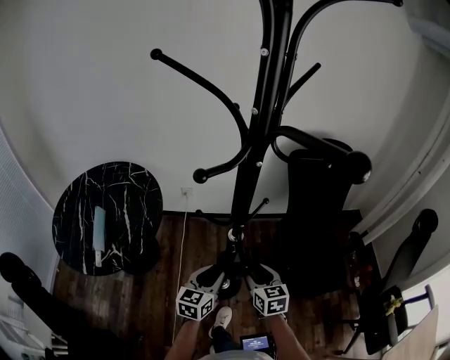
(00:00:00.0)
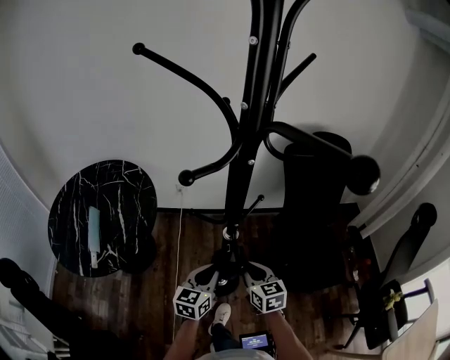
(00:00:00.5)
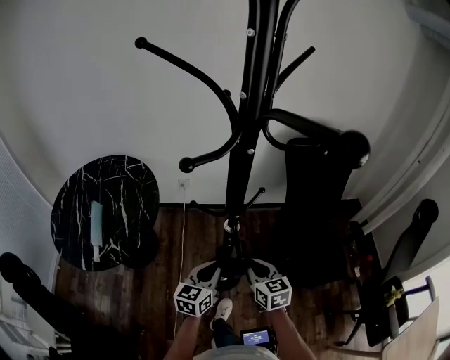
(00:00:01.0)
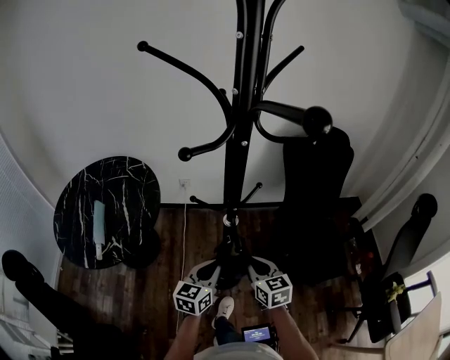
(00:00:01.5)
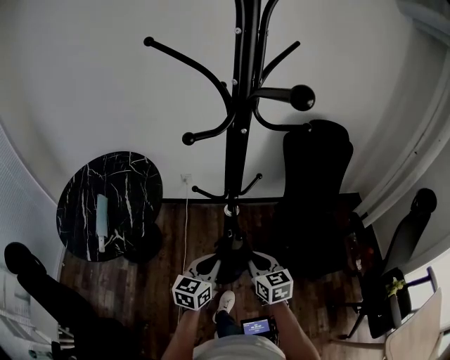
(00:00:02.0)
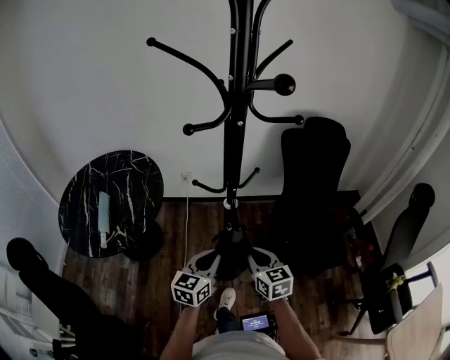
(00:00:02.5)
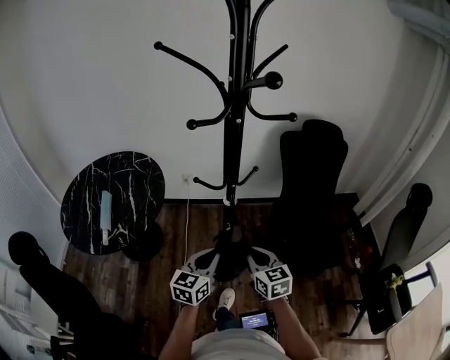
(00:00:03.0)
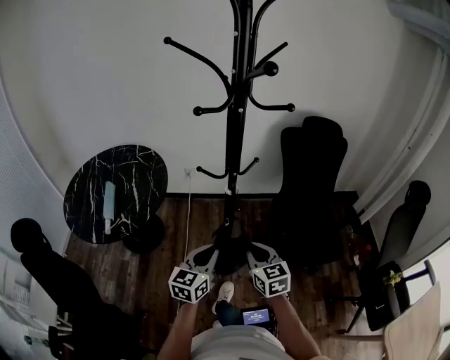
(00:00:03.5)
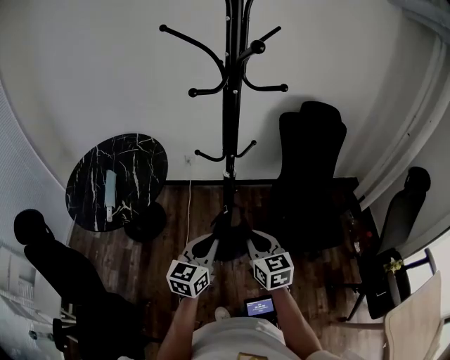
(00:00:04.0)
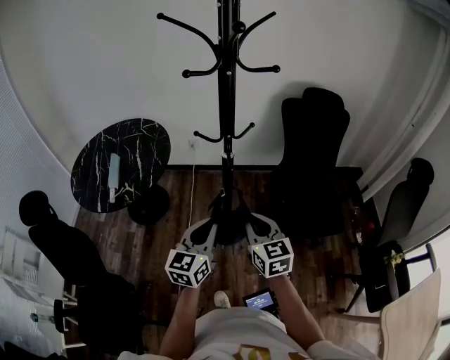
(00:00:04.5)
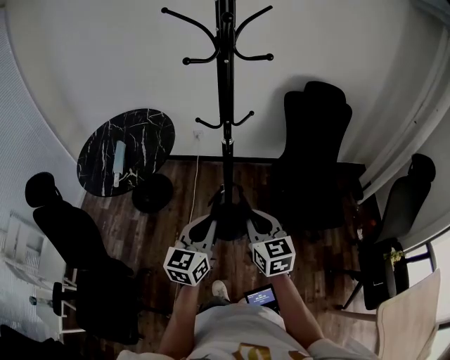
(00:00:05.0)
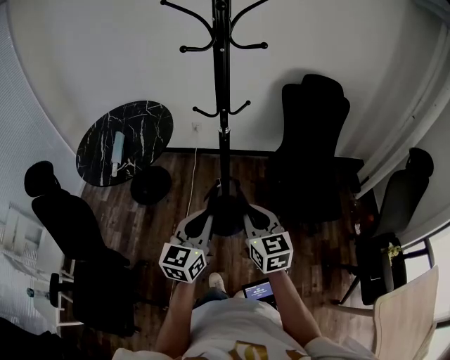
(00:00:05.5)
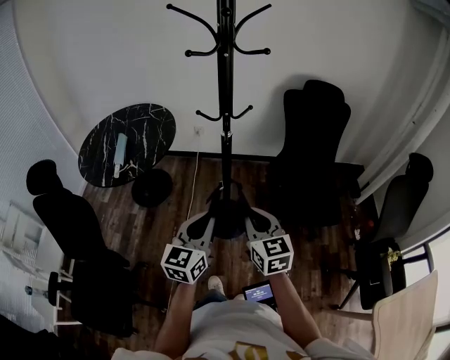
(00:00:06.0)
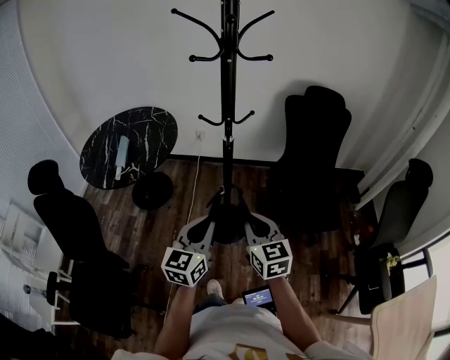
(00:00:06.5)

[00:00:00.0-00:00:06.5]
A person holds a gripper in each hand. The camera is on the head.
00:00:00.0 to 00:00:02.0: The left gripper shifts by roughly 5 cm, and closes. The right gripper changes place by some 5 cm, and closes its fingers.
00:00:02.0 to 00:00:04.5: The two grippers go some 15 cm backward and upward.
00:00:04.5 to 00:00:06.5: Both grippers travel together backward, about 10 cm.

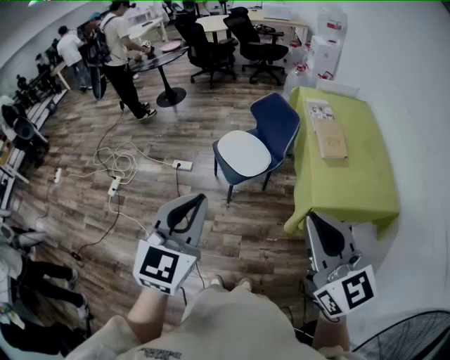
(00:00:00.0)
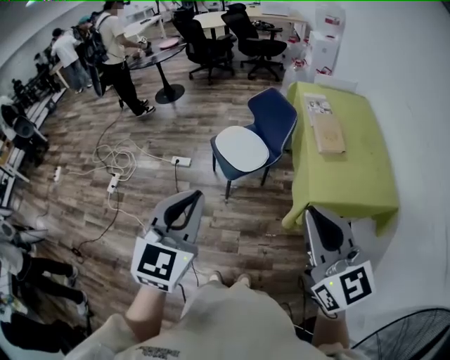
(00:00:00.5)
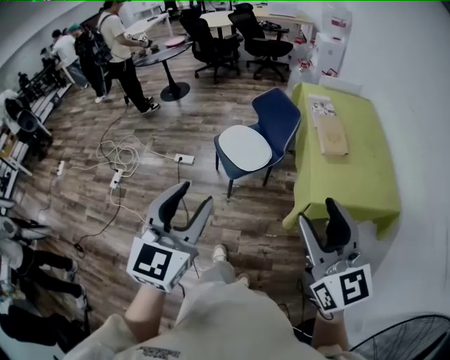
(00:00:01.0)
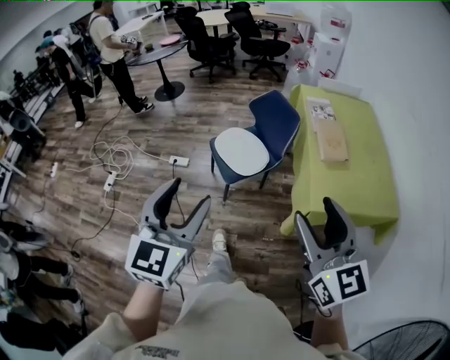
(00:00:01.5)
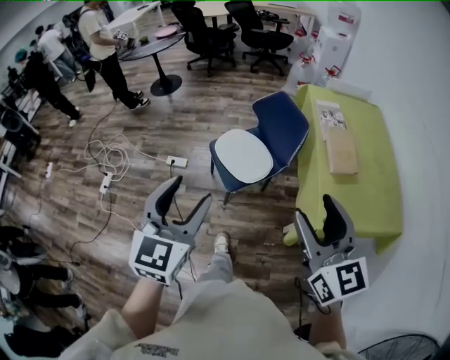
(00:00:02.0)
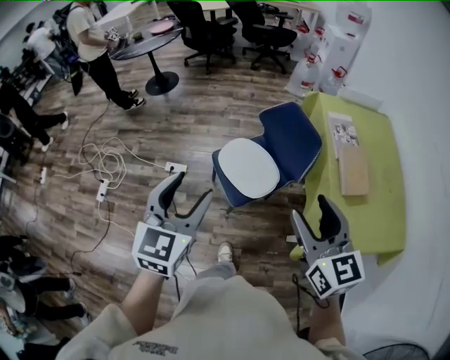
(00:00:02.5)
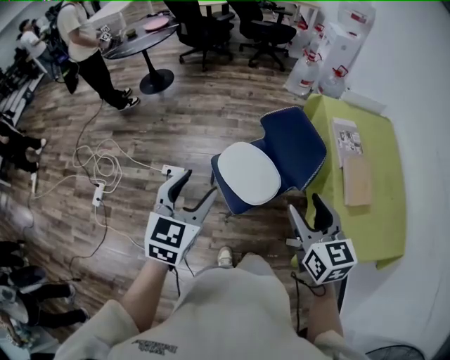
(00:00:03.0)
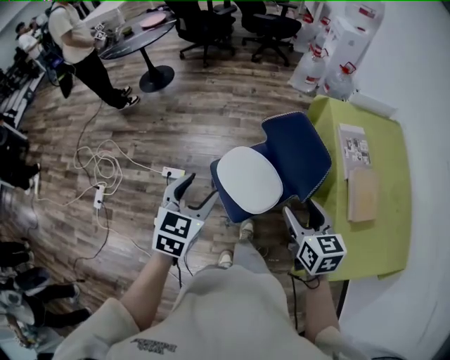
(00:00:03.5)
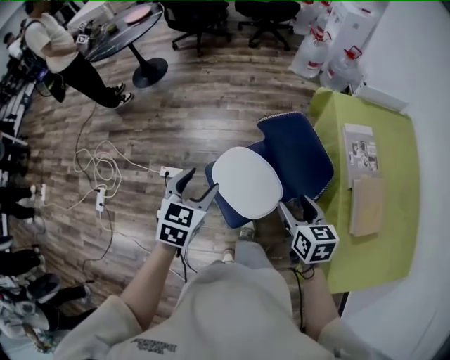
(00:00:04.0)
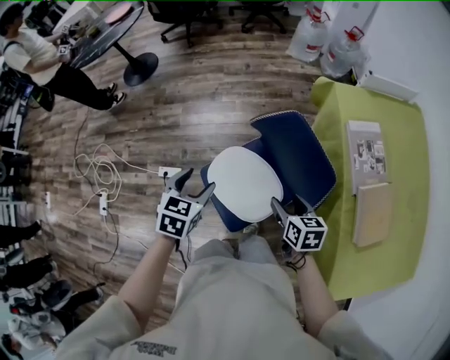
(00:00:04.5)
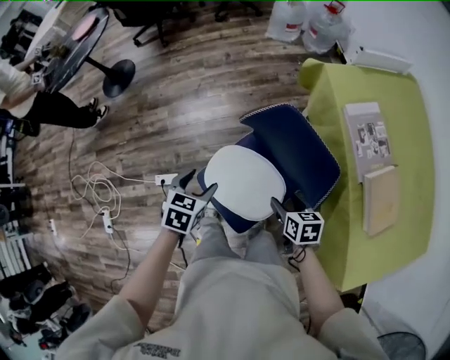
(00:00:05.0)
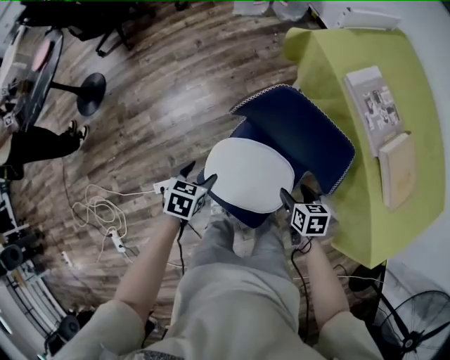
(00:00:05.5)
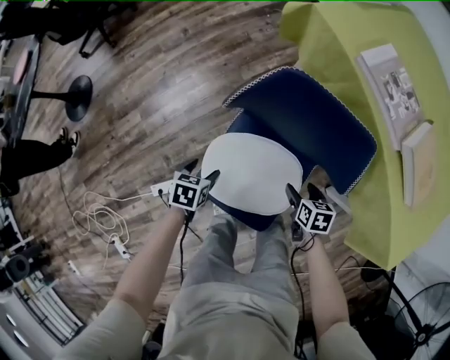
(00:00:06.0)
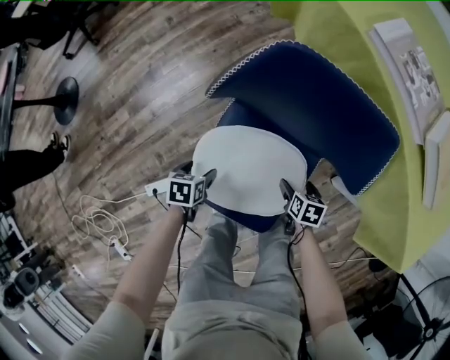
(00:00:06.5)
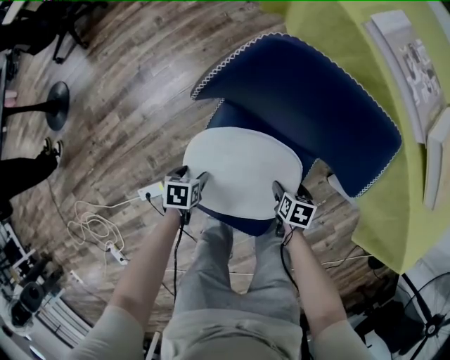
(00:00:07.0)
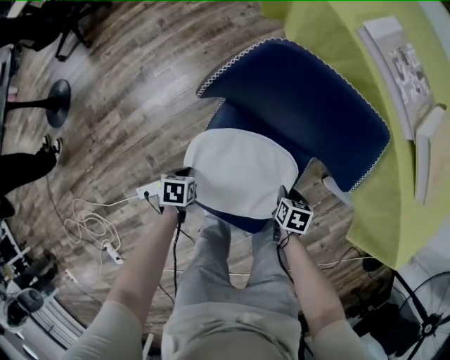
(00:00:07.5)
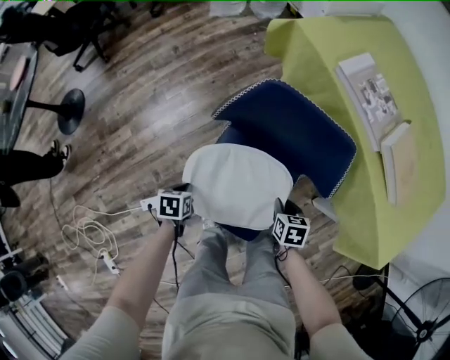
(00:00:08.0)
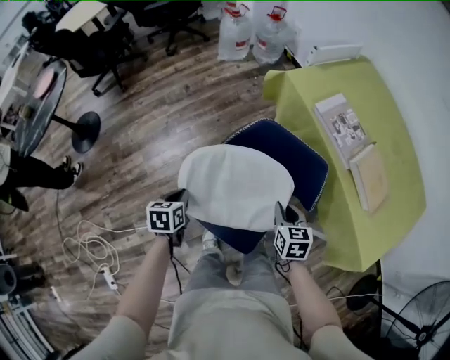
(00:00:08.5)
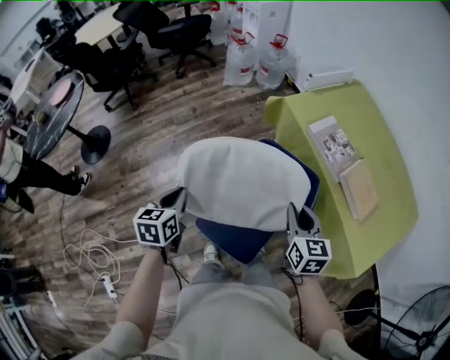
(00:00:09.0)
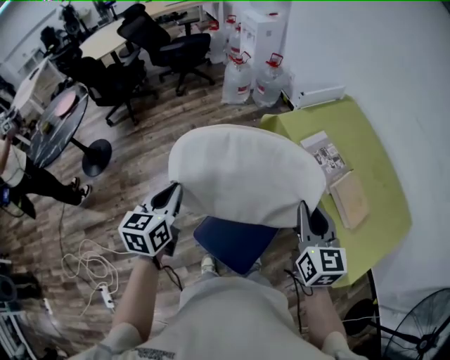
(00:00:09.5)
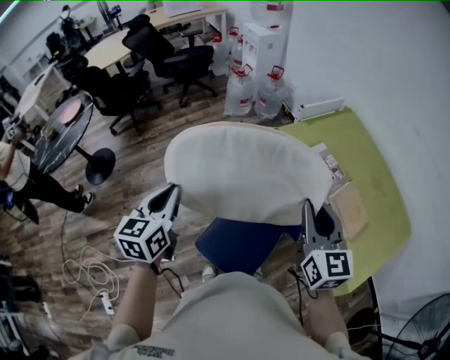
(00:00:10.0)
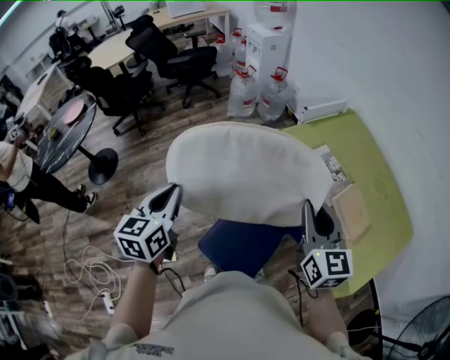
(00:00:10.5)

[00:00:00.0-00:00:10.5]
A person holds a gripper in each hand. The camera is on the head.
00:00:00.0 to 00:00:02.0: Both grippers move forward, some 20 cm. The left gripper opens its fingers. The right gripper opens its fingers.
00:00:02.0 to 00:00:04.0: The two grippers travel together, forward, about 40 cm. The grippers both shift downward by approximately 25 cm. The left gripper rotates roughly 30 degrees; the right gripper angles its fingers downward, by some 30 degrees.
00:00:04.0 to 00:00:06.5: Both grippers move downward, approximately 50 cm. The left gripper turns by about 50 degrees. The right gripper points its fingers roughly 30 degrees further downward.
00:00:06.5 to 00:00:08.5: Both grippers travel together upward, approximately 30 cm. The left gripper rotates roughly 20 degrees, and closes up. Meanwhile the right gripper rotates about 30 degrees, and closes.
00:00:08.5 to 00:00:10.5: Both grippers move upward, approximately 35 cm. The right gripper tilts its fingers some 30 degrees upward, while the left gripper tilts its fingers roughly 30 degrees upward.

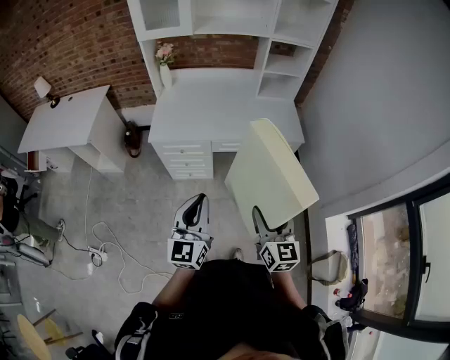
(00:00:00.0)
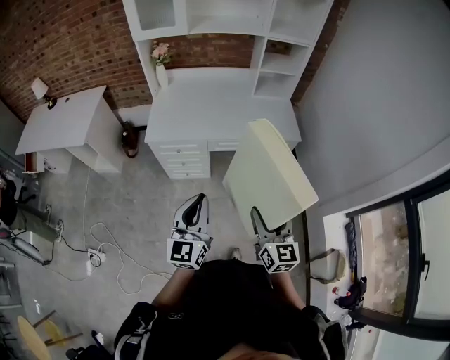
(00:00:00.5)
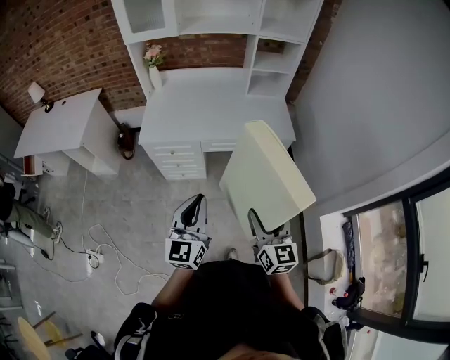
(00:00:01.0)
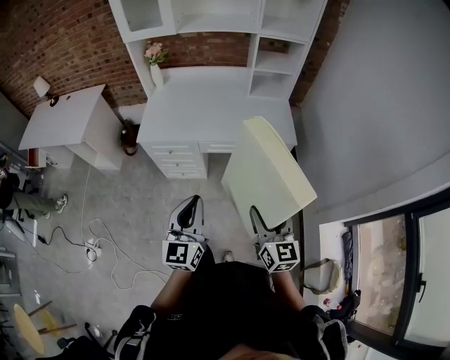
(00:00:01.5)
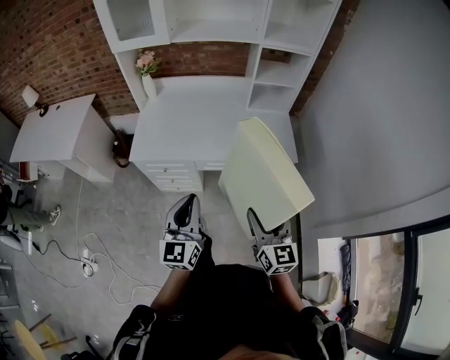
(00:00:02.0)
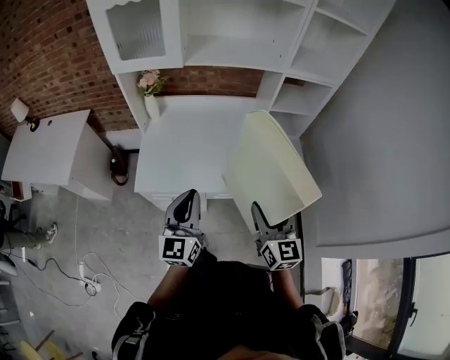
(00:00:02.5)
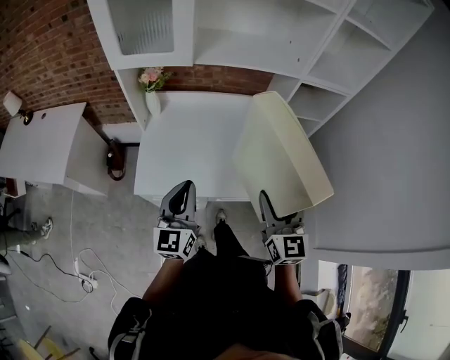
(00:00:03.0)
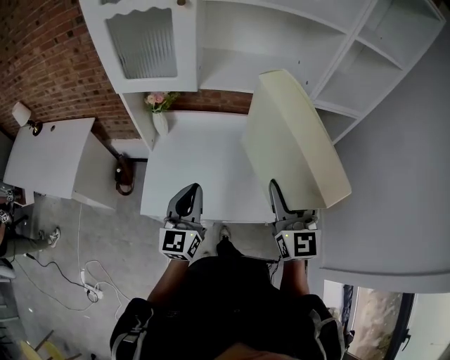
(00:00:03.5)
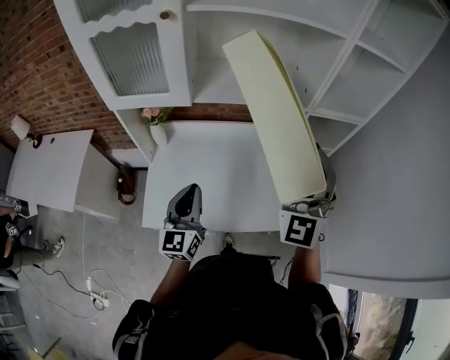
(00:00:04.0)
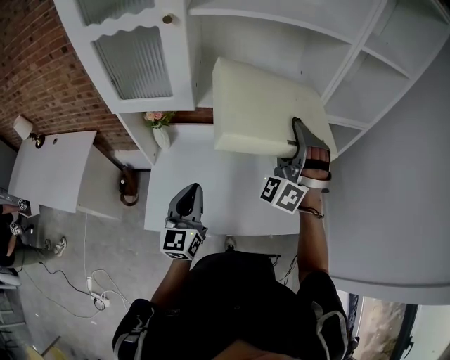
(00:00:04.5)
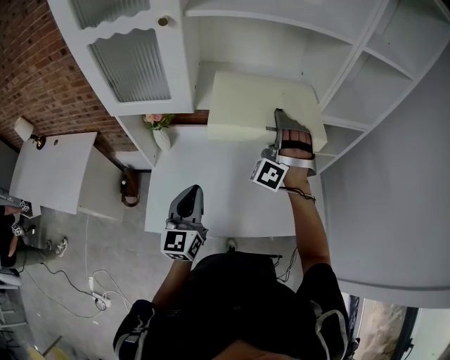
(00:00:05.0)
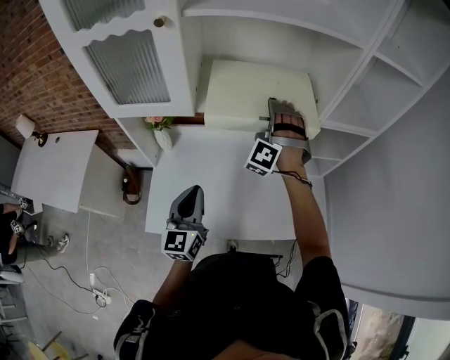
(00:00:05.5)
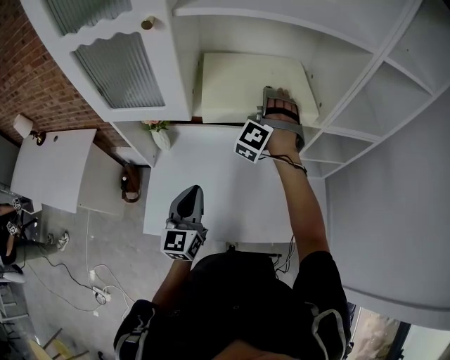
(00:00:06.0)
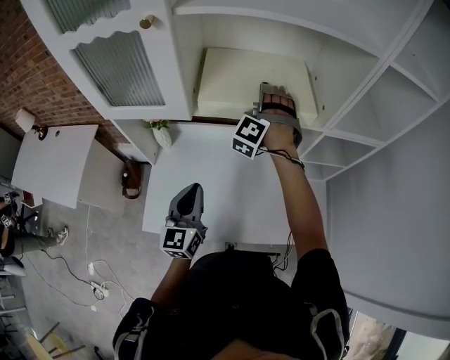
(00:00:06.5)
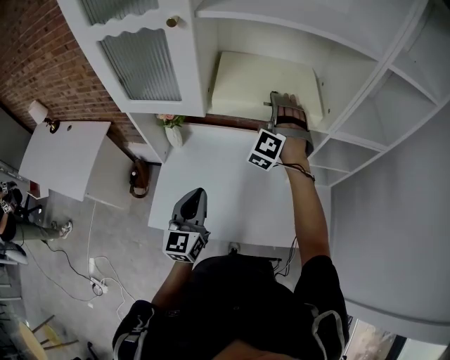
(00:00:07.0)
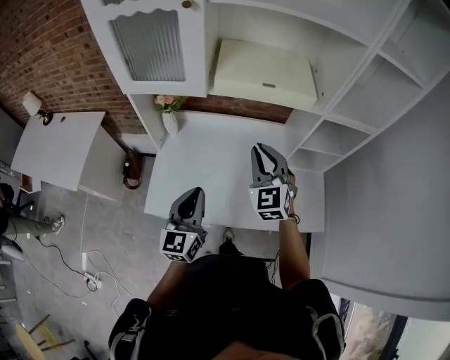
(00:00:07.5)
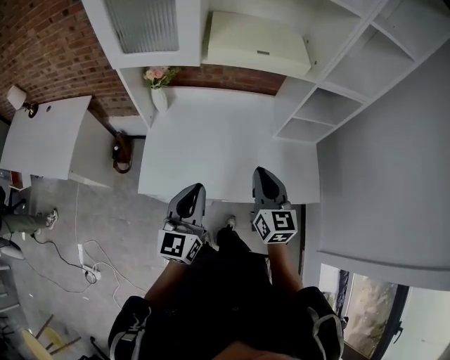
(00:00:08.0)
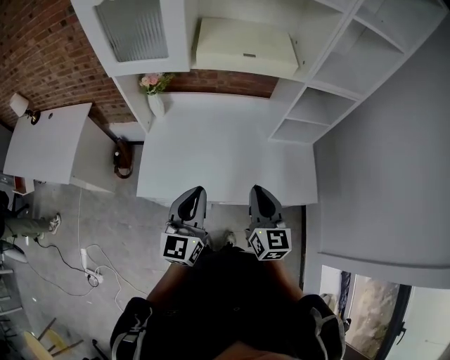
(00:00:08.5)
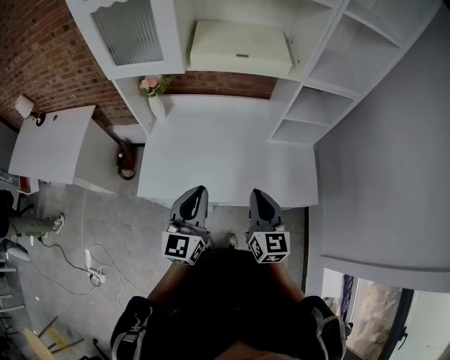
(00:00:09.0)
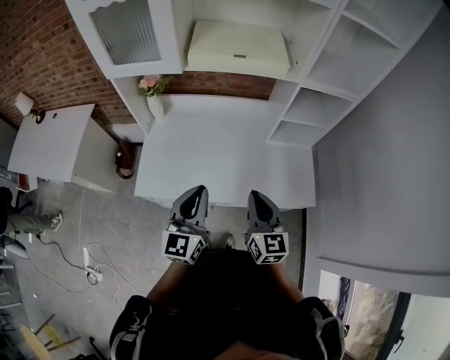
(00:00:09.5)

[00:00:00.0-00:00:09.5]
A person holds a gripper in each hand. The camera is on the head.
00:00:00.0 to 00:00:02.0: The left gripper goes approximately 15 cm forward; the right gripper shifts roughly 15 cm forward and to the right.
00:00:02.0 to 00:00:04.0: The pair of grippers is taken forward, some 40 cm. The right gripper shifts approximately 20 cm upward, and rotates around the line of its fingers by roughly 40 degrees, counterclockwise from behind.
00:00:04.0 to 00:00:05.5: The right gripper heads forward and downward, covering about 25 cm, and rolls counterclockwise, seen from behind, by some 50 degrees.
00:00:05.5 to 00:00:07.5: The right gripper goes approximately 20 cm backward, rotates around the line of its fingers by approximately 50 degrees, clockwise from behind, and closes up; the left gripper goes some 5 cm backward.
00:00:07.5 to 00:00:09.5: The left gripper is displaced backward and to the right by about 10 cm; the right gripper is displaced backward and to the right by roughly 20 cm, and changes its angle by some 40 degrees.
